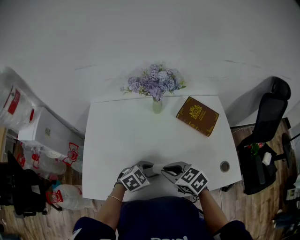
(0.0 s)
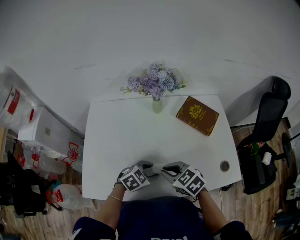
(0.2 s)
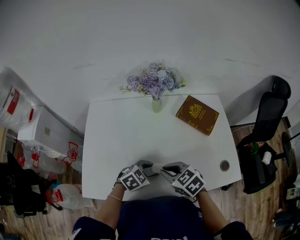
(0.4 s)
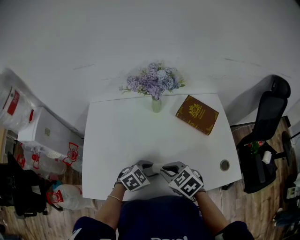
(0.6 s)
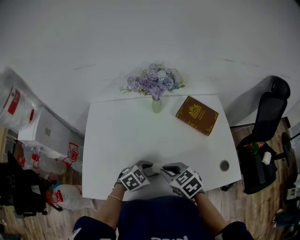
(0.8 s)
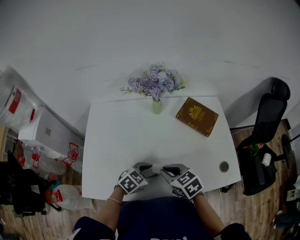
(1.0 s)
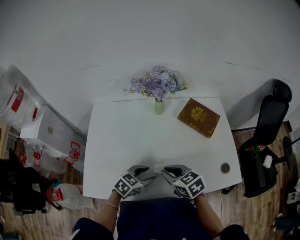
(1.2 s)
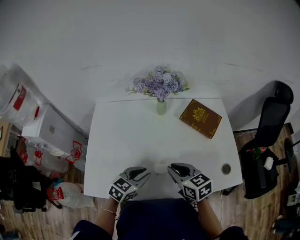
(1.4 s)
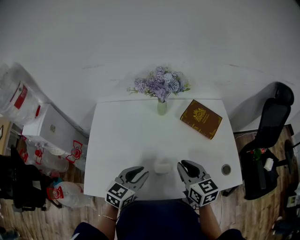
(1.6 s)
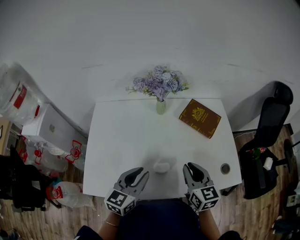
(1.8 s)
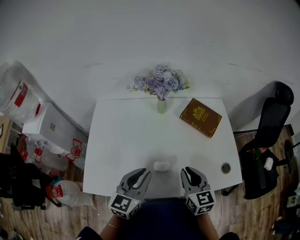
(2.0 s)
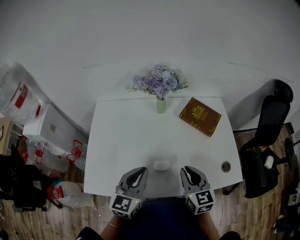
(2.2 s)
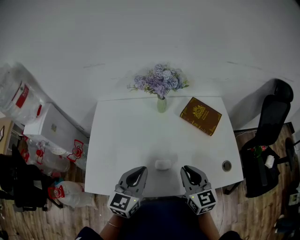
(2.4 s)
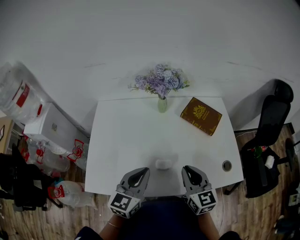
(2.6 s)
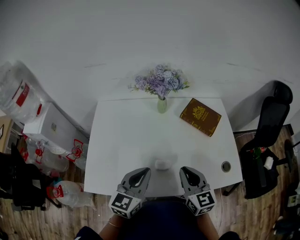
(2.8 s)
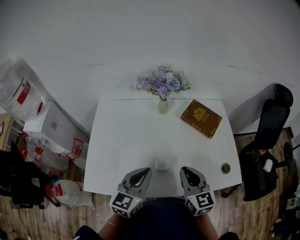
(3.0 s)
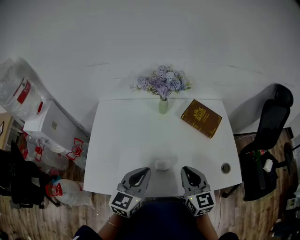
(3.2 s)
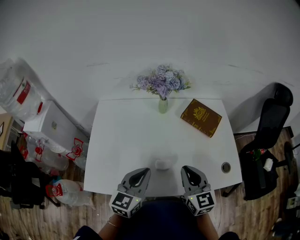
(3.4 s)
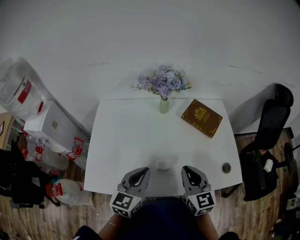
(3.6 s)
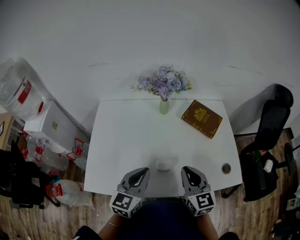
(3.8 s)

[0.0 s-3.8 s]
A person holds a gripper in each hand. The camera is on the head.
0.0 to 1.2 s: There are only small adjustments of the grippers.
1.2 to 2.6 s: The right gripper travels to the right and upward by roughly 10 cm, and changes its angle by about 40 degrees. Meanwhile the left gripper goes some 15 cm upward, changes its angle by approximately 40 degrees, and closes up.
2.6 to 3.8 s: The two grippers keep their place.

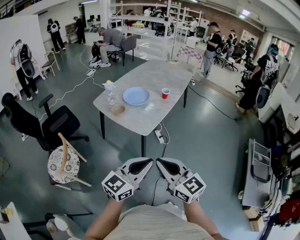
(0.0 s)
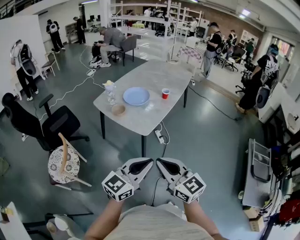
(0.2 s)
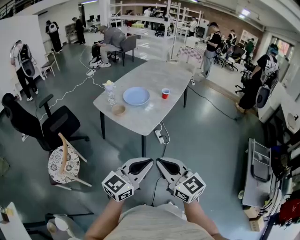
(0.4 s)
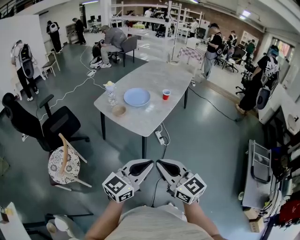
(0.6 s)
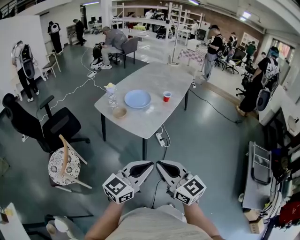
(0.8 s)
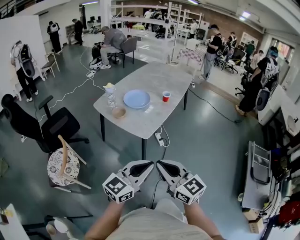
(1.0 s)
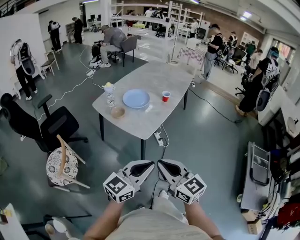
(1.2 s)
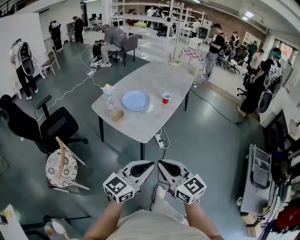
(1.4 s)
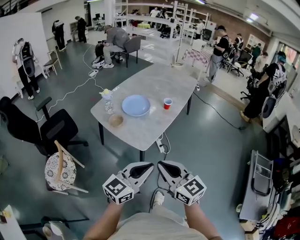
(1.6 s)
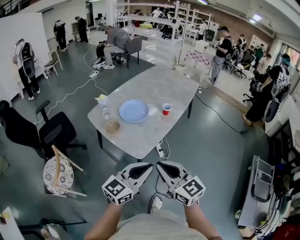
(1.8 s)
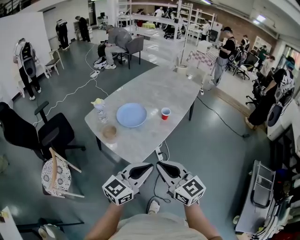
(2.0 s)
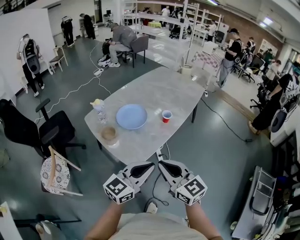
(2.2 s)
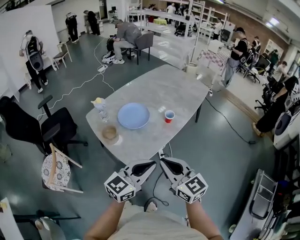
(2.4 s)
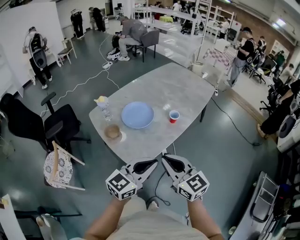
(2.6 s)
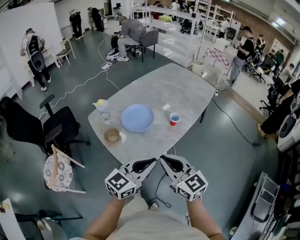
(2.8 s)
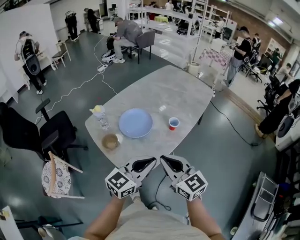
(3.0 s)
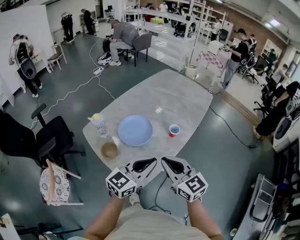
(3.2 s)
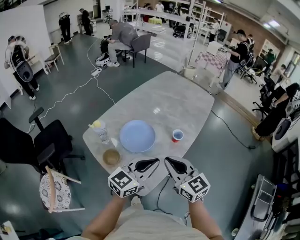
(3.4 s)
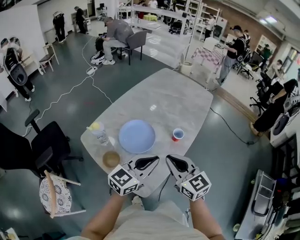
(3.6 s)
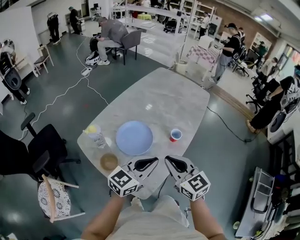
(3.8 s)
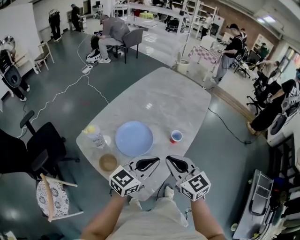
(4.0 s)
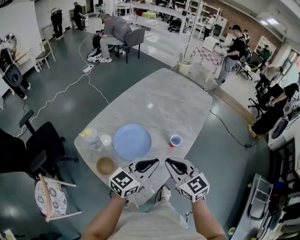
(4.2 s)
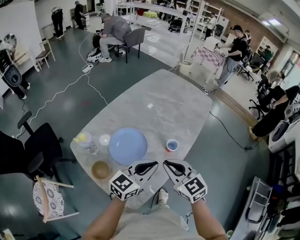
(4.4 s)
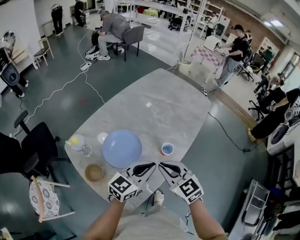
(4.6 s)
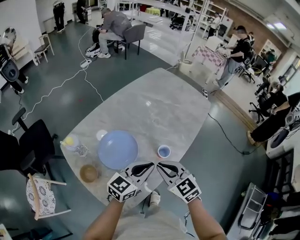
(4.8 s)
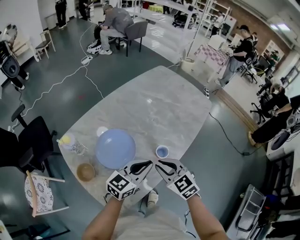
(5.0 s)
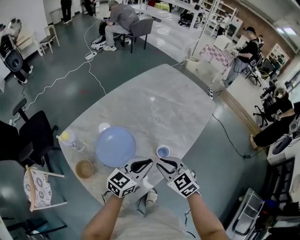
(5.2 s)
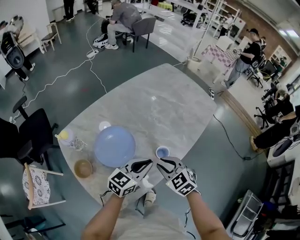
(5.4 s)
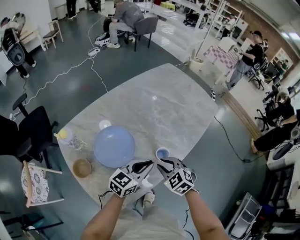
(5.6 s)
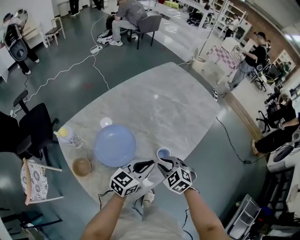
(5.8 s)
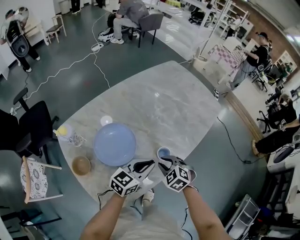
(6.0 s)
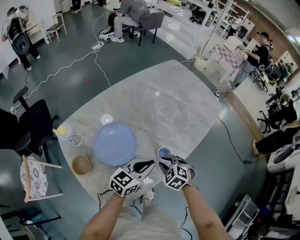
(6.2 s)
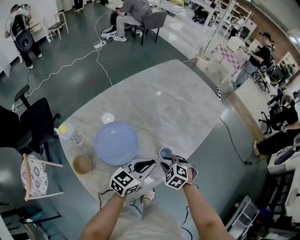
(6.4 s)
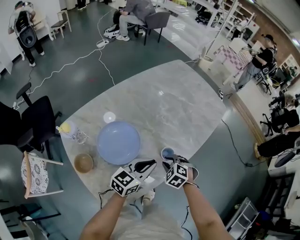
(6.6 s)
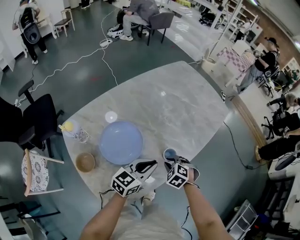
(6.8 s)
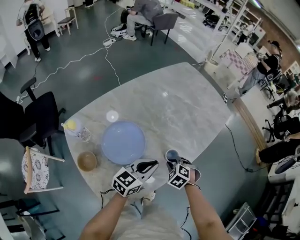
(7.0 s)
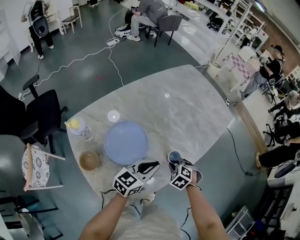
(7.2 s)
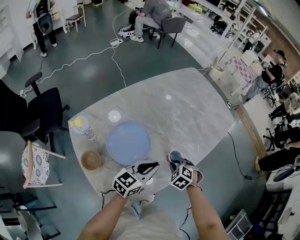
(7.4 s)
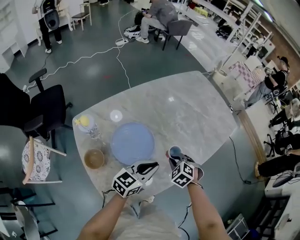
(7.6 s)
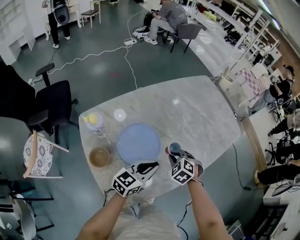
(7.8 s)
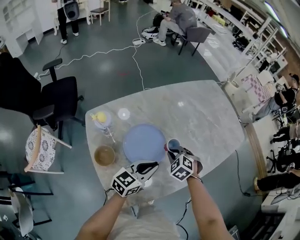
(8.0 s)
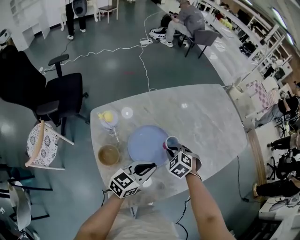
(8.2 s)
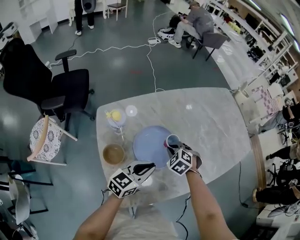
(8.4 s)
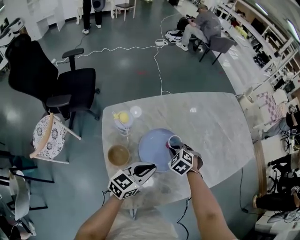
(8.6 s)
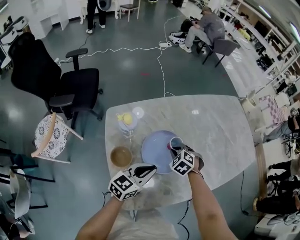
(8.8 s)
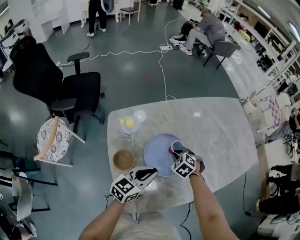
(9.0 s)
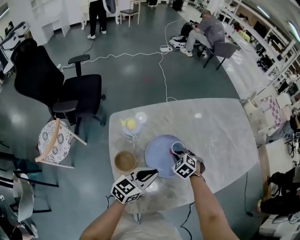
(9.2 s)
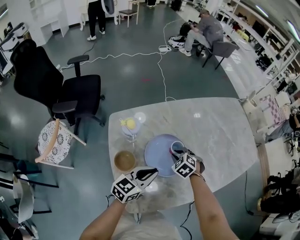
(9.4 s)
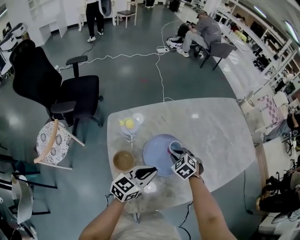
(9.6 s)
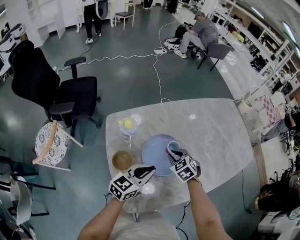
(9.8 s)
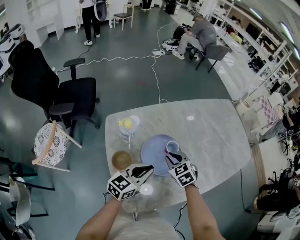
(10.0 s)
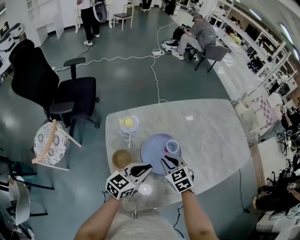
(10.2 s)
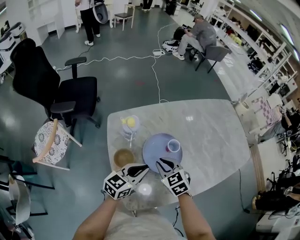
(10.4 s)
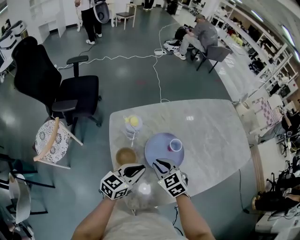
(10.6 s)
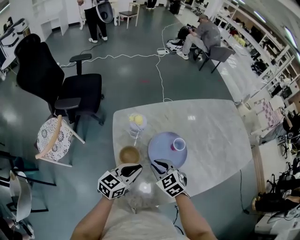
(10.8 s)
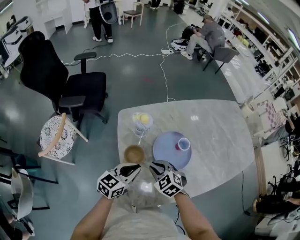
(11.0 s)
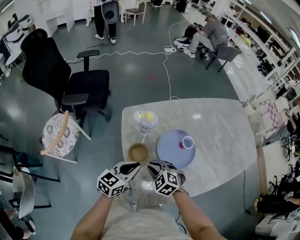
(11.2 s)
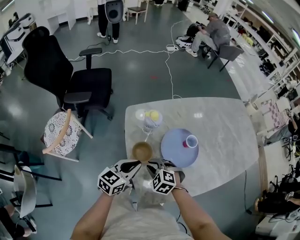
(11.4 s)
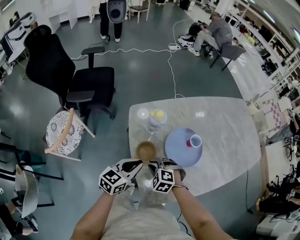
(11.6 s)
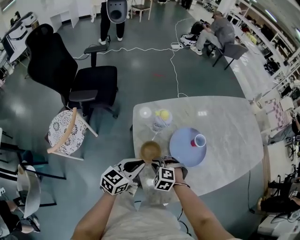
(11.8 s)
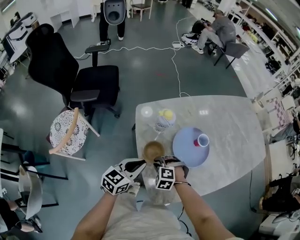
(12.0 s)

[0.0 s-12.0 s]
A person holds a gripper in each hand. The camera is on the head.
0.0 to 1.6 s: Both grippers move forward, approximately 10 cm.
1.6 to 3.0 s: Both grippers travel together forward, about 30 cm.
3.0 to 4.4 s: Both grippers move forward, approximately 20 cm.
4.4 to 6.0 s: The left gripper moves downward, forward and to the right, approximately 15 cm. Meanwhile the right gripper shifts approximately 20 cm downward and forward, points its fingers roughly 40 degrees further downward, and opens.
6.0 to 7.6 s: The left gripper moves to the left, some 5 cm. Meanwhile the right gripper changes place by some 5 cm.
7.6 to 9.0 s: The grippers both shift to the left by about 20 cm.
9.0 to 10.4 s: The right gripper moves backward, upward and to the left, about 15 cm, and turns by roughly 30 degrees.
10.4 to 12.0 s: The right gripper moves to the left, downward and backward, approximately 20 cm, and rotates around the line of its fingers by some 40 degrees, counterclockwise from behind, while the left gripper heads to the left, covering some 15 cm.

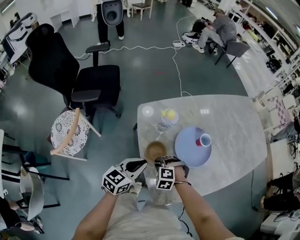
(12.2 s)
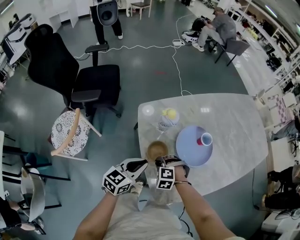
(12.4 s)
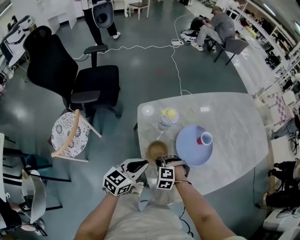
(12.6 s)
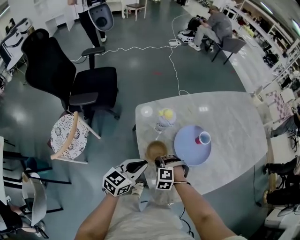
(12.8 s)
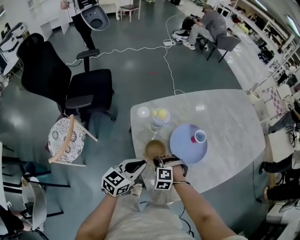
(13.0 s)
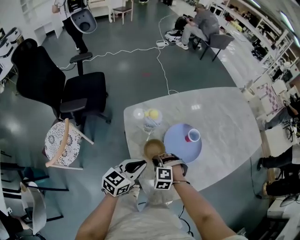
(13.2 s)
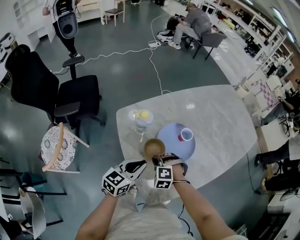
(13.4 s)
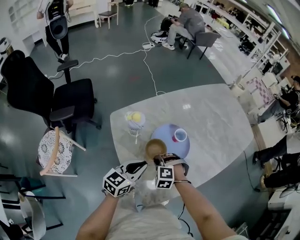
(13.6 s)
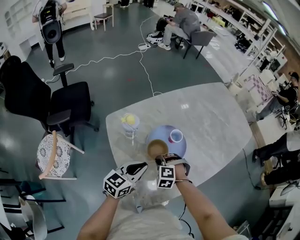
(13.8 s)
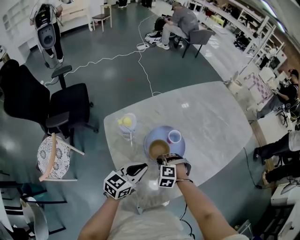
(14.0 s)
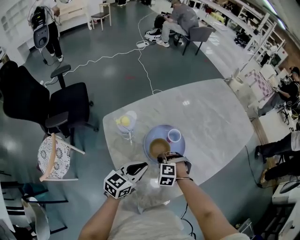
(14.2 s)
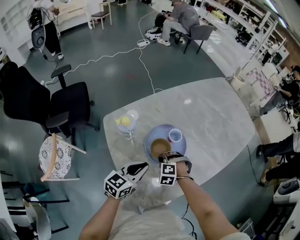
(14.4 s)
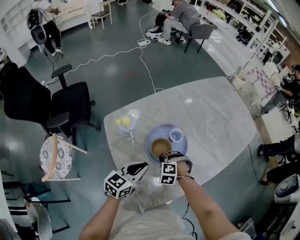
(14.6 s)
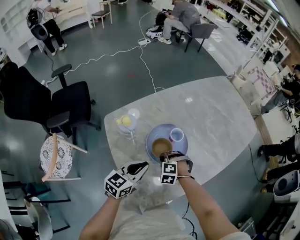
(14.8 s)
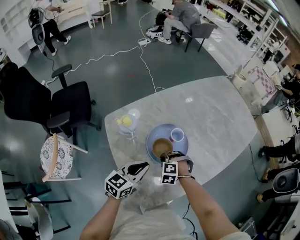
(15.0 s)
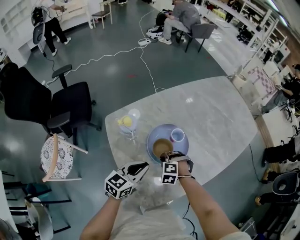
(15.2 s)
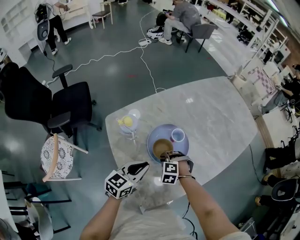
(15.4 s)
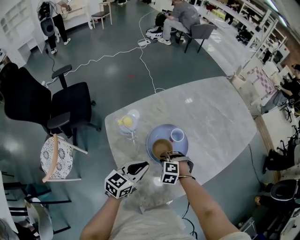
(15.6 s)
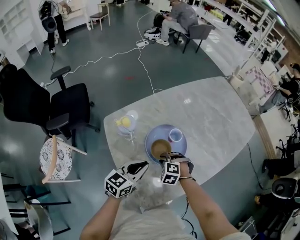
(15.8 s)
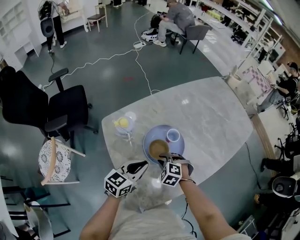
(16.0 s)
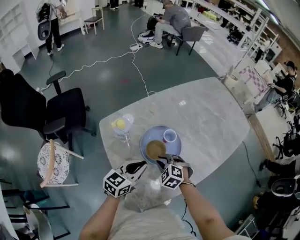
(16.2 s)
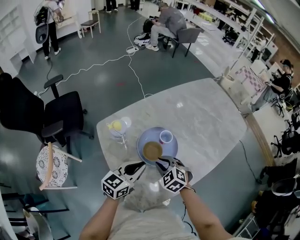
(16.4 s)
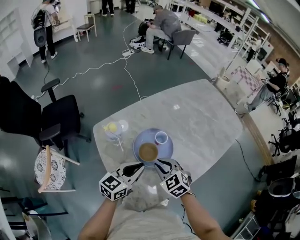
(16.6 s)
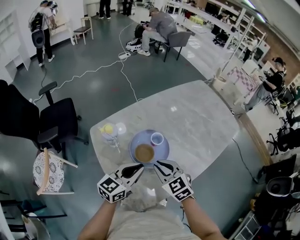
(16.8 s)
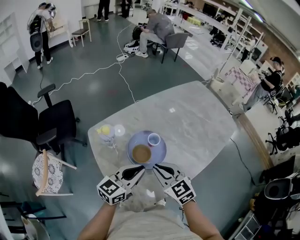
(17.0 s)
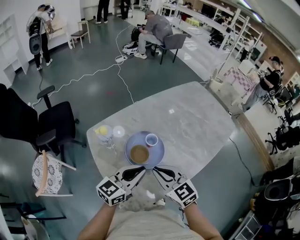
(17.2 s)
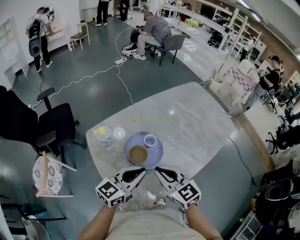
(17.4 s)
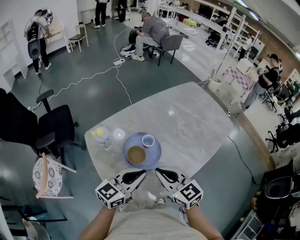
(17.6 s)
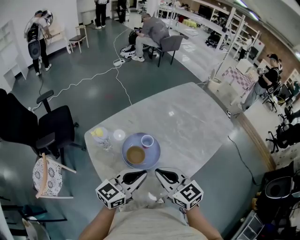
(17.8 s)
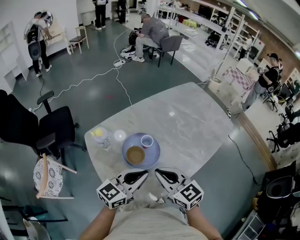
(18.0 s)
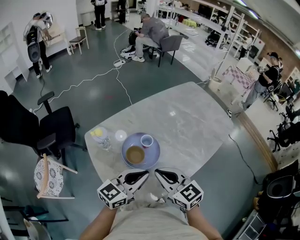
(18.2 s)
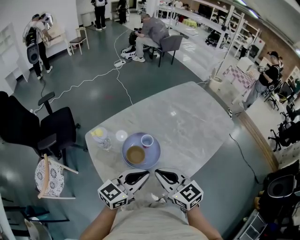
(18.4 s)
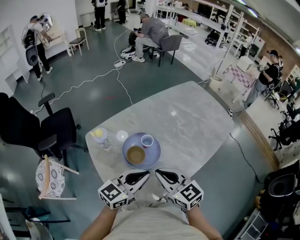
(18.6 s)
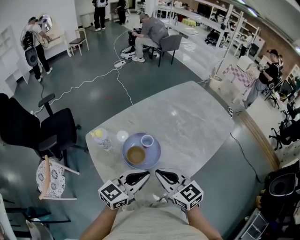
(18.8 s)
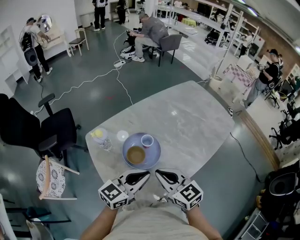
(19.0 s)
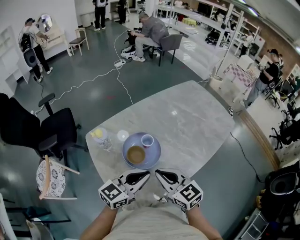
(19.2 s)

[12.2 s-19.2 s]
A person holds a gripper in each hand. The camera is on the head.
12.2 to 13.6 s: The right gripper goes about 10 cm to the right and forward. The left gripper travels to the right by approximately 10 cm.
13.6 to 15.0 s: The right gripper moves about 10 cm.
15.0 to 16.4 s: The right gripper shifts some 10 cm upward, and rotates some 40 degrees.
16.4 to 17.8 s: The grippers both shift upward and to the right by about 15 cm. The right gripper tilts its fingers approximately 30 degrees upward.
17.8 to 19.2 s: The grippers move only a little.

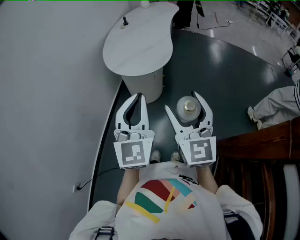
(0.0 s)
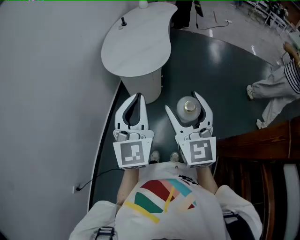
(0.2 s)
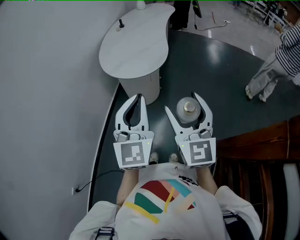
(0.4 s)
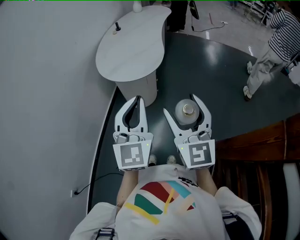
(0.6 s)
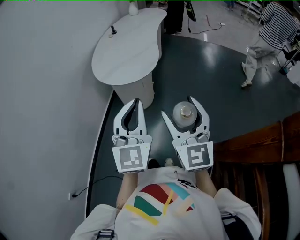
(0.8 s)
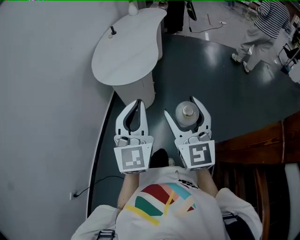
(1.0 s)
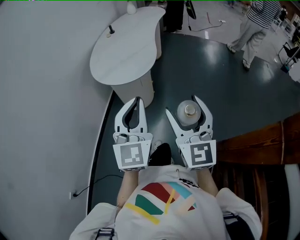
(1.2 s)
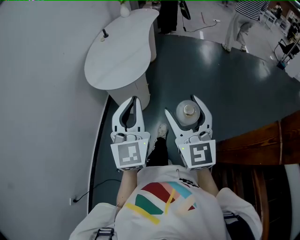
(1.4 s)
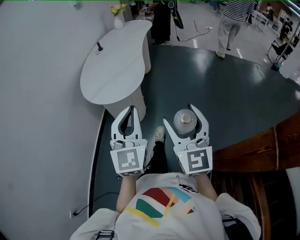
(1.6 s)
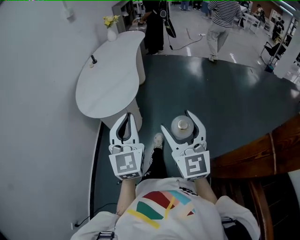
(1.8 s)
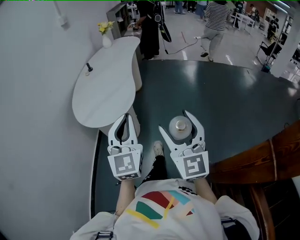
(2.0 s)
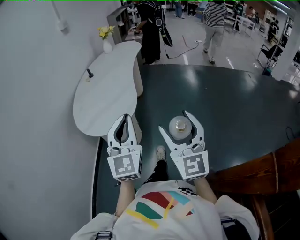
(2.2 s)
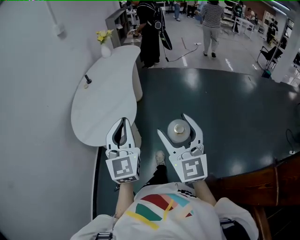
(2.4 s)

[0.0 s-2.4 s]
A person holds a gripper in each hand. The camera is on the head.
0.0 to 1.2 s: Both grippers move to the right, some 10 cm.
1.2 to 2.4 s: Both grippers move forward, some 20 cm.
